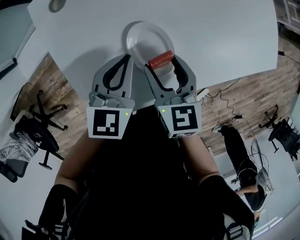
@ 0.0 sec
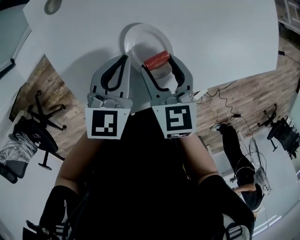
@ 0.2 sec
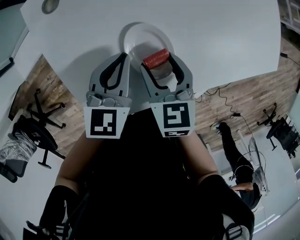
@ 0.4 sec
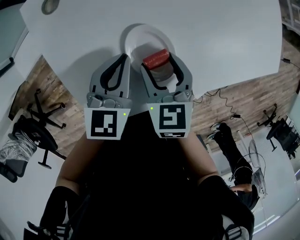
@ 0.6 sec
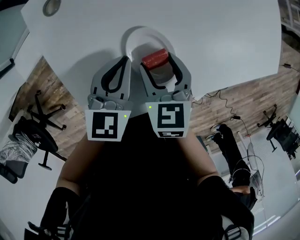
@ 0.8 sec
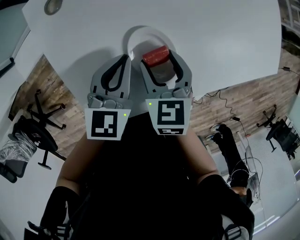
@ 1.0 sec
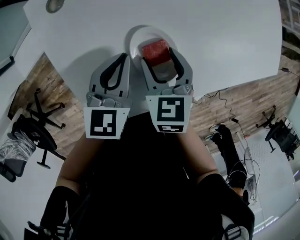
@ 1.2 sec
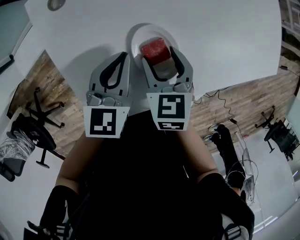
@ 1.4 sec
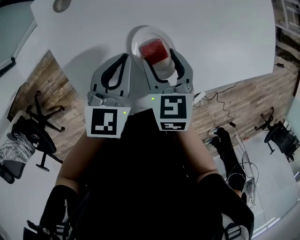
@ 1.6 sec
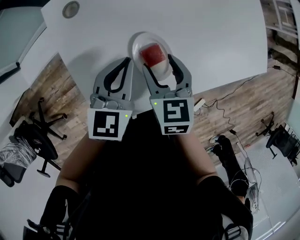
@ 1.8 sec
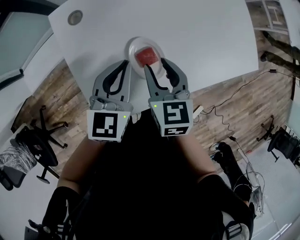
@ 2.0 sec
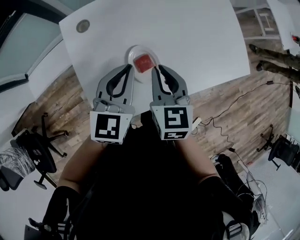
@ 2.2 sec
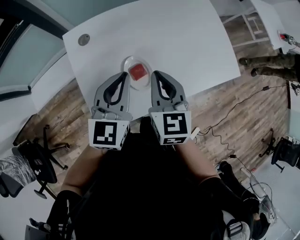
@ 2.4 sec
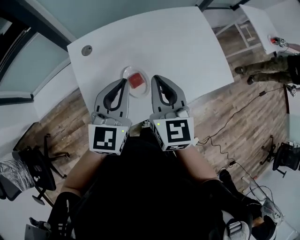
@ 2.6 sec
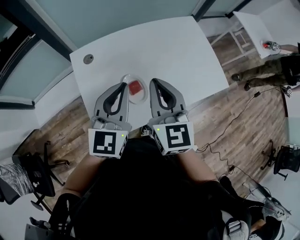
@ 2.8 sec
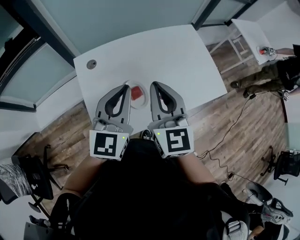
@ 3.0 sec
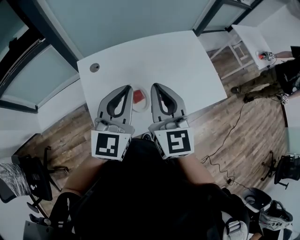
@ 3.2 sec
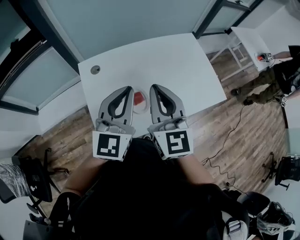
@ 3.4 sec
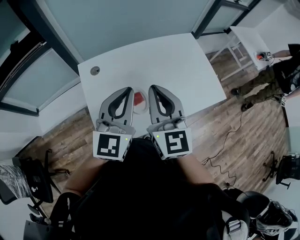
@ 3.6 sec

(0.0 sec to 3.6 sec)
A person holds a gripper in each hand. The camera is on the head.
0.0 sec - 1.8 sec: There are only small adjustments of the grippers.
1.8 sec - 3.6 sec: Both grippers travel together upward, about 25 cm. The right gripper points its fingers approximately 40 degrees further upward, and closes up. The left gripper turns by roughly 30 degrees.

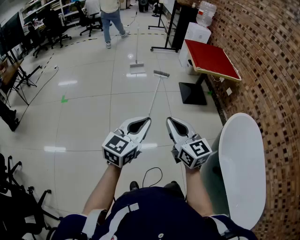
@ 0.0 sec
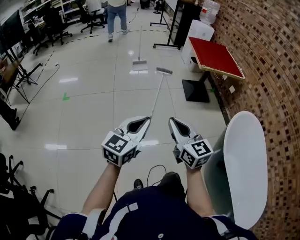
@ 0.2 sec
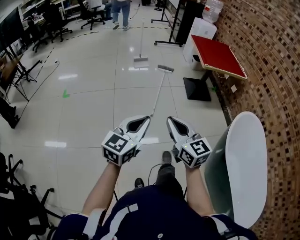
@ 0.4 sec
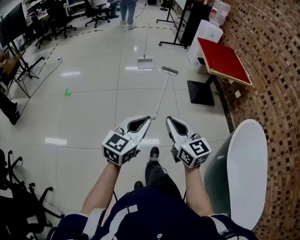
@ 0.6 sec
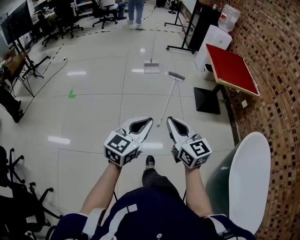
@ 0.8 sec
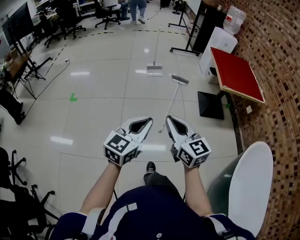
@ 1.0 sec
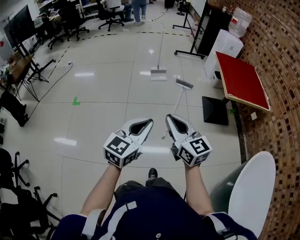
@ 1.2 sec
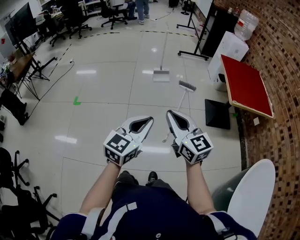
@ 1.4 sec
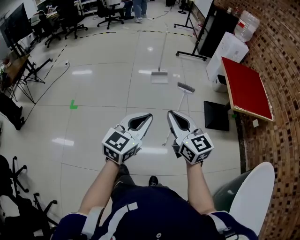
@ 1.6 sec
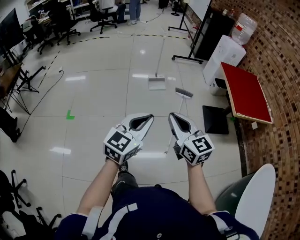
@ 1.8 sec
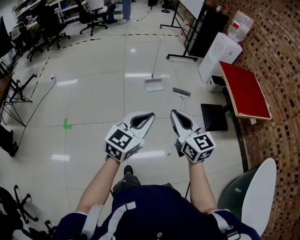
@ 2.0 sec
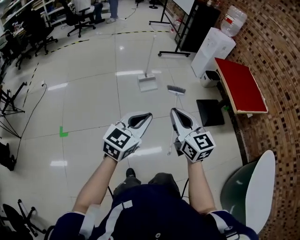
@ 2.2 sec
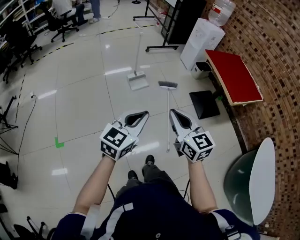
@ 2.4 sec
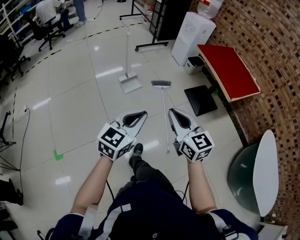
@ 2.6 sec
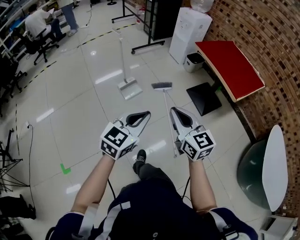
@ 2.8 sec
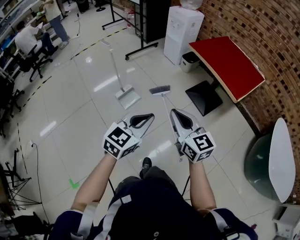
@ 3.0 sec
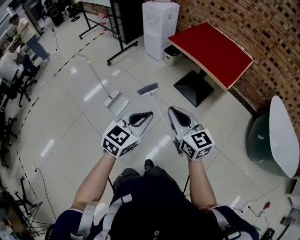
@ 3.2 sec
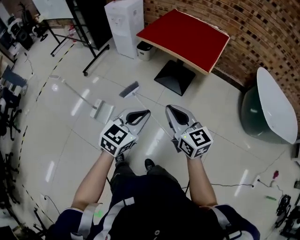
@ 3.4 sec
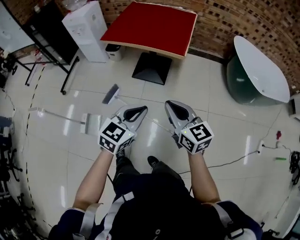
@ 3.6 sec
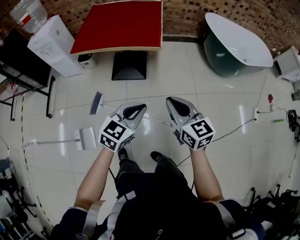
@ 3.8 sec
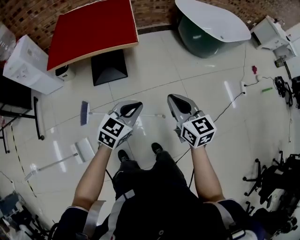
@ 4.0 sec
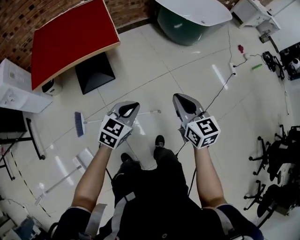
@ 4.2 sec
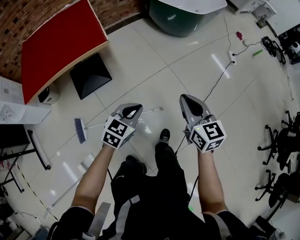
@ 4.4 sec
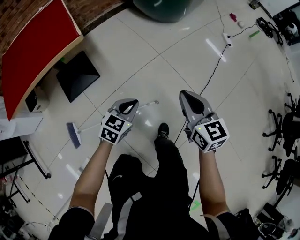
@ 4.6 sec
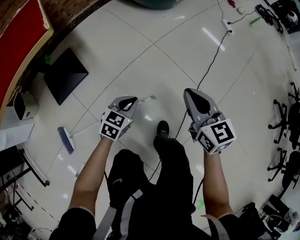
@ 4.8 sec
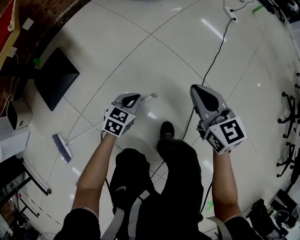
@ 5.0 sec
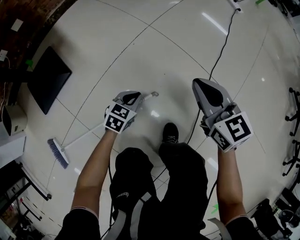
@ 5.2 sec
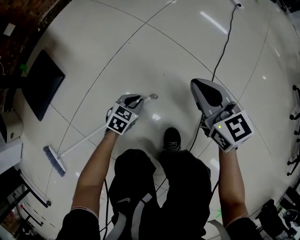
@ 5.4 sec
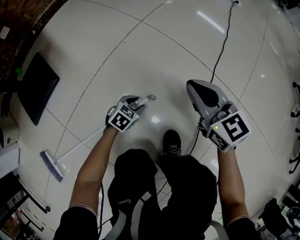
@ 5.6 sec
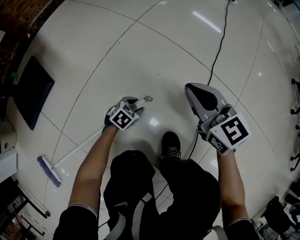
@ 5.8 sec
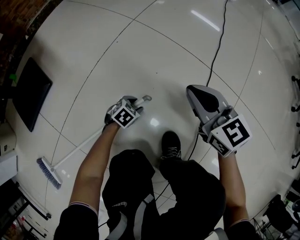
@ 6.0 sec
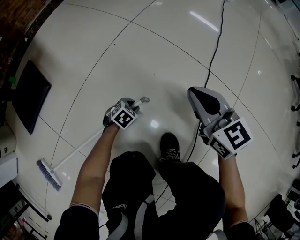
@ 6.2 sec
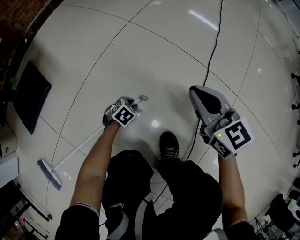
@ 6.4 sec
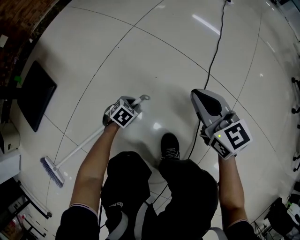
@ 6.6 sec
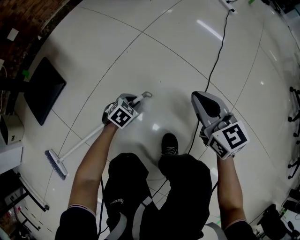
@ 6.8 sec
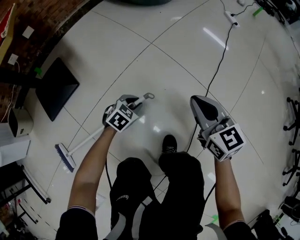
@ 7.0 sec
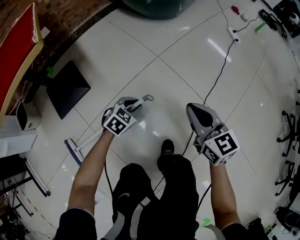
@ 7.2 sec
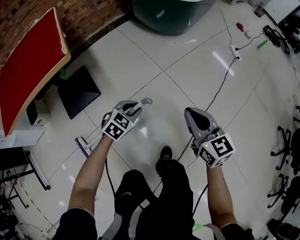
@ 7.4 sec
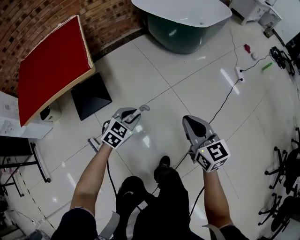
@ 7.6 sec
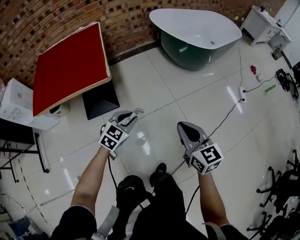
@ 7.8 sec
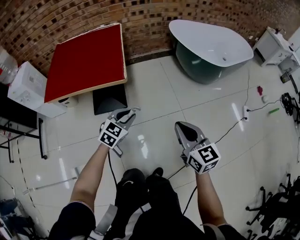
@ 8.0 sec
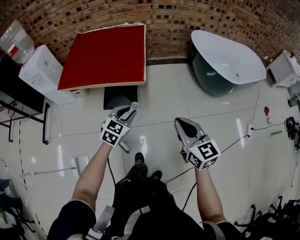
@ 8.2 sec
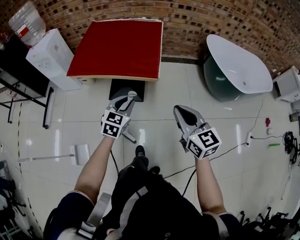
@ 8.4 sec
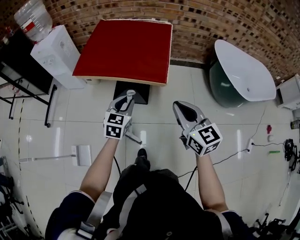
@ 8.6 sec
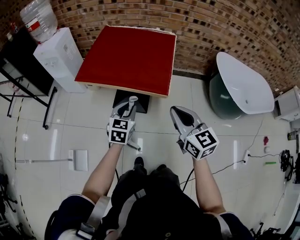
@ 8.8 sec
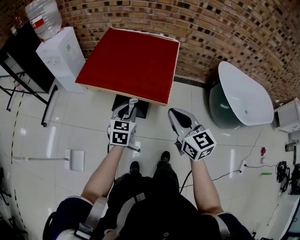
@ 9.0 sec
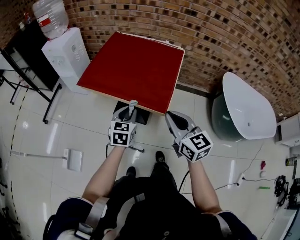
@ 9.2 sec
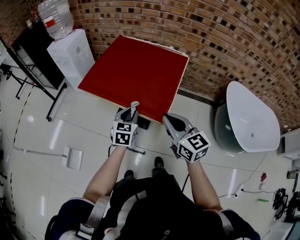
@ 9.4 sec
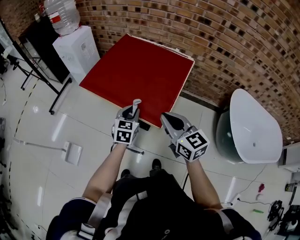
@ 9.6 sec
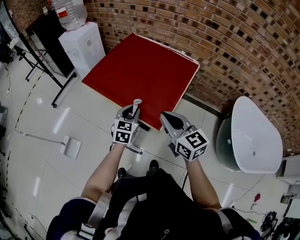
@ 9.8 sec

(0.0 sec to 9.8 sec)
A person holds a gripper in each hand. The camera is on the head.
0.0 sec - 1.4 sec: The grippers both shift forward by about 30 cm.
1.4 sec - 2.8 sec: The left gripper shifts by some 40 cm, and turns by roughly 40 degrees, while the right gripper ends up approximately 35 cm from where it was, and swivels about 40 degrees.
2.8 sec - 4.2 sec: The left gripper shifts by about 35 cm, and changes its angle by about 90 degrees; the right gripper changes place by approximately 25 cm, and changes its angle by about 90 degrees.
4.2 sec - 5.6 sec: The grippers both shift downward by roughly 60 cm. The left gripper changes its angle by some 40 degrees, and opens its fingers.
5.6 sec - 7.0 sec: The grippers both shift upward by about 15 cm.
7.0 sec - 8.4 sec: The two grippers go some 50 cm upward. The left gripper rotates approximately 70 degrees. Meanwhile the right gripper turns by about 50 degrees.
8.4 sec - 9.8 sec: The left gripper ends up about 20 cm from where it was, and rotates approximately 30 degrees. The right gripper shifts by about 25 cm, and rotates approximately 30 degrees.

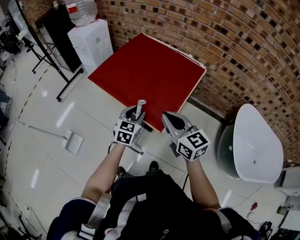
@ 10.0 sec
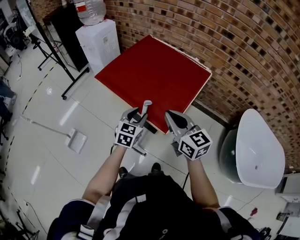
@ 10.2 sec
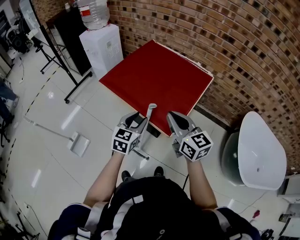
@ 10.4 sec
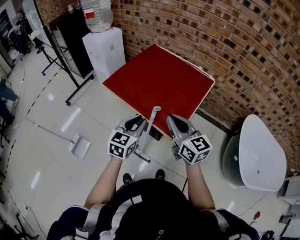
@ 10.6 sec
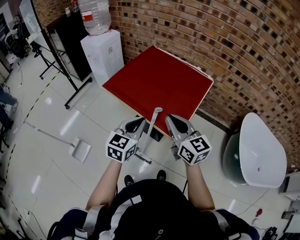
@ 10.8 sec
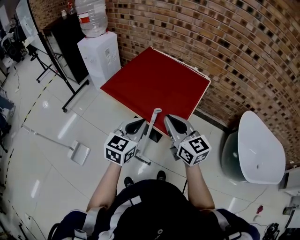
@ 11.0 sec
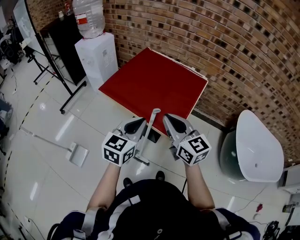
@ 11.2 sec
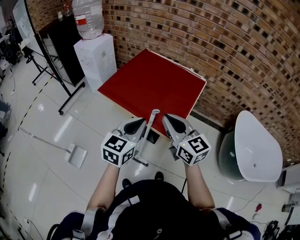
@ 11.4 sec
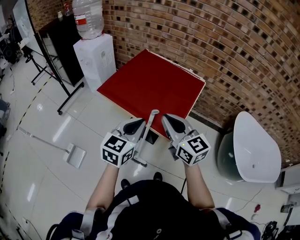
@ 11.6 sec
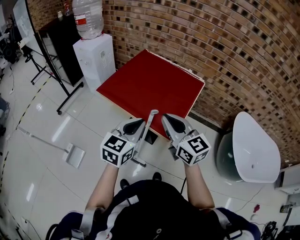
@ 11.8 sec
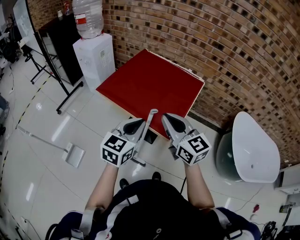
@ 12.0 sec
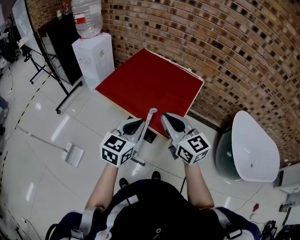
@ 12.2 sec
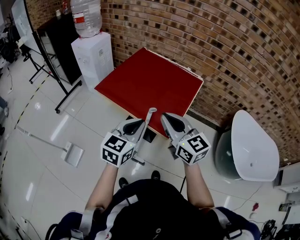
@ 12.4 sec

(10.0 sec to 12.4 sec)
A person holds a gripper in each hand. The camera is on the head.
10.0 sec - 11.2 sec: The right gripper travels to the left and upward by approximately 10 cm. Meanwhile the left gripper moves upward and backward, about 15 cm, and closes.
11.2 sec - 12.4 sec: There are only small adjustments of the grippers.

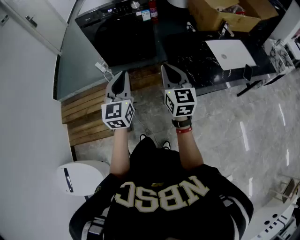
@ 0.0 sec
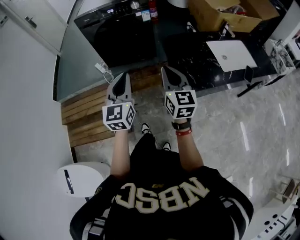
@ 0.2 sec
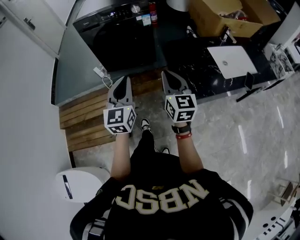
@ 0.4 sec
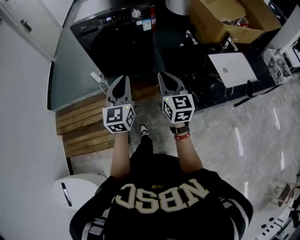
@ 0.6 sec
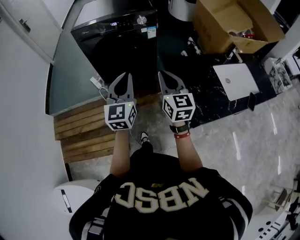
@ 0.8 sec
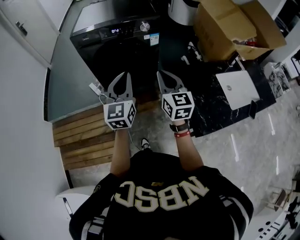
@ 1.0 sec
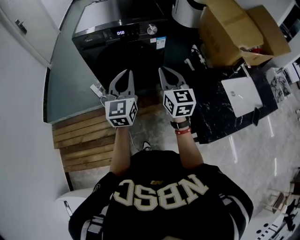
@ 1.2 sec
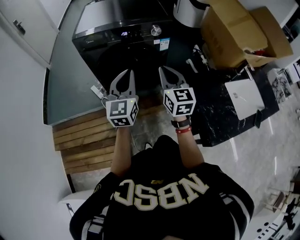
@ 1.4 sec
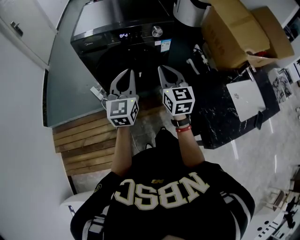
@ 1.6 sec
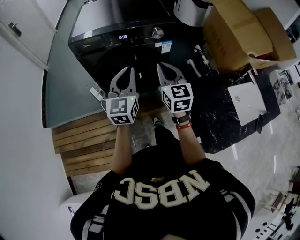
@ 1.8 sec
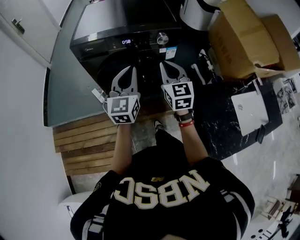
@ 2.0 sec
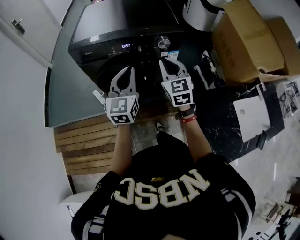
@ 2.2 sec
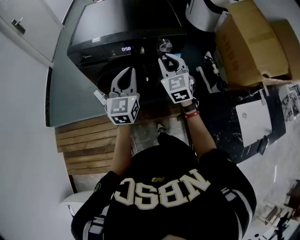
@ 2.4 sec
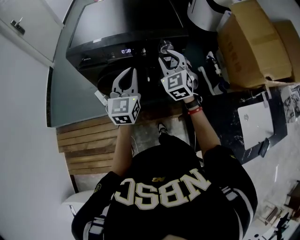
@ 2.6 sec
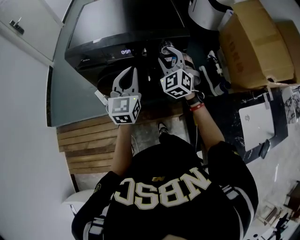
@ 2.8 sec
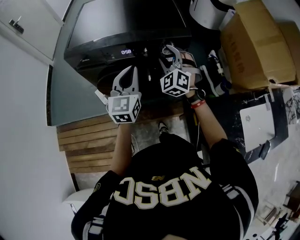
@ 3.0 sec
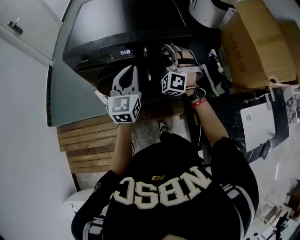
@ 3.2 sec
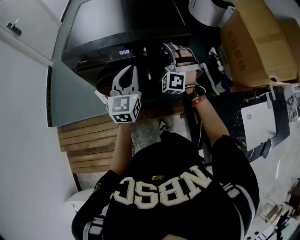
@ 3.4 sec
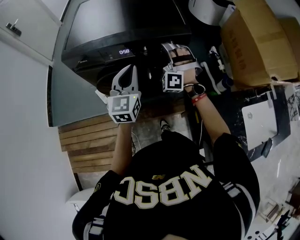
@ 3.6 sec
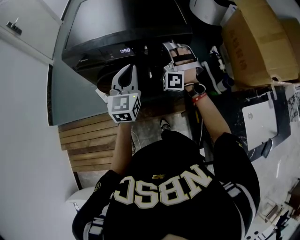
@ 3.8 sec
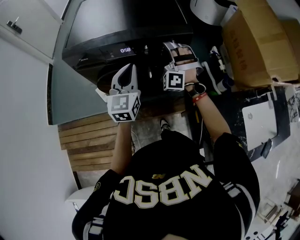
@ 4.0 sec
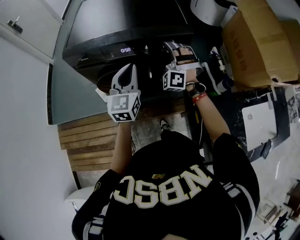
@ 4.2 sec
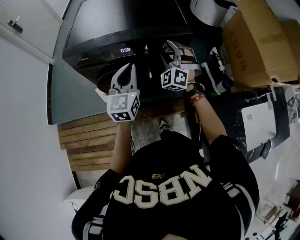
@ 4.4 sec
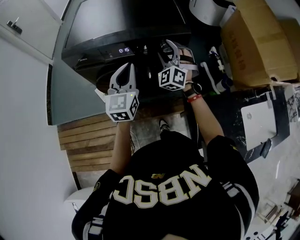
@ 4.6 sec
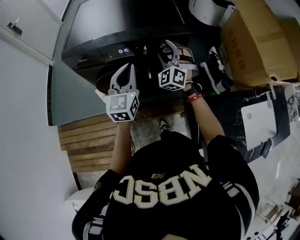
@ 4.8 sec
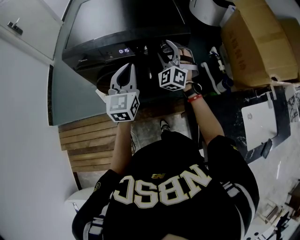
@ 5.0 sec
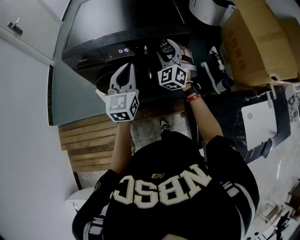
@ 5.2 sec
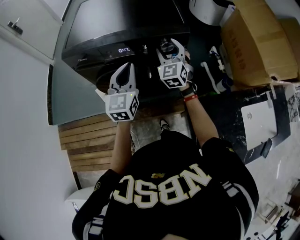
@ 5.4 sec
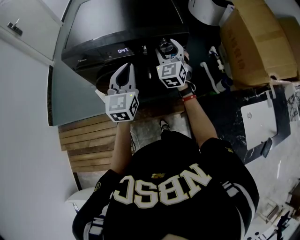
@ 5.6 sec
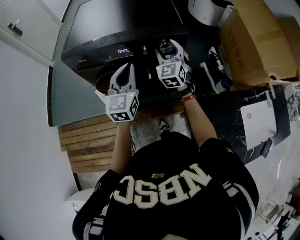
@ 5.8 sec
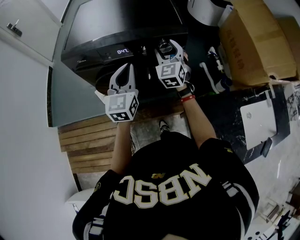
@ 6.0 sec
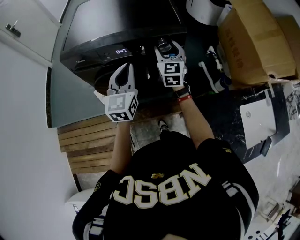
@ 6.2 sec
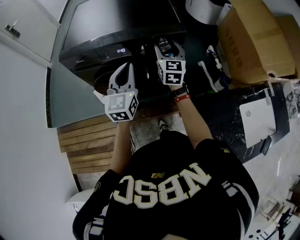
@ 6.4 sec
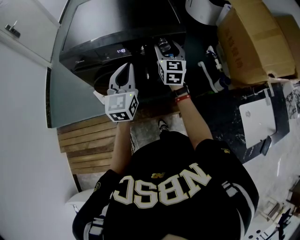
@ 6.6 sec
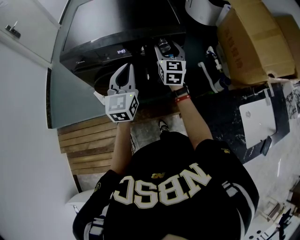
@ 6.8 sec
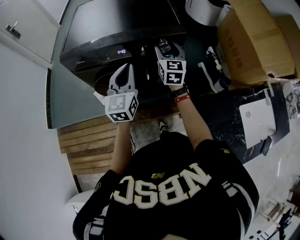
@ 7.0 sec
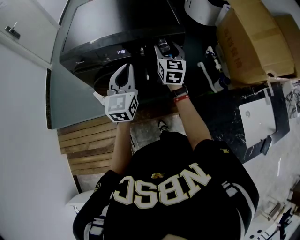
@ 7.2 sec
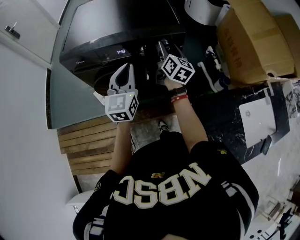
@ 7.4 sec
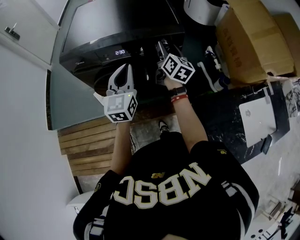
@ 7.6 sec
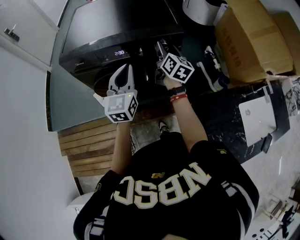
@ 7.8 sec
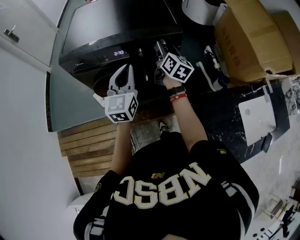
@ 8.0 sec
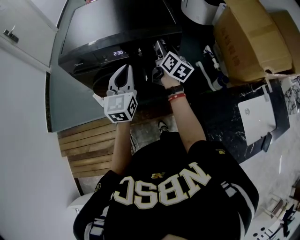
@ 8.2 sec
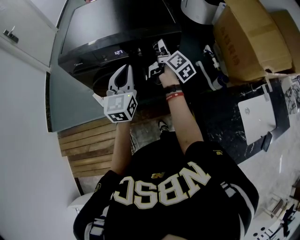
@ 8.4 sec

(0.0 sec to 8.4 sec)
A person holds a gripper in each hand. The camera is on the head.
0.0 sec - 1.4 sec: The two grippers go about 35 cm forward.
1.4 sec - 2.8 sec: Both grippers move forward, some 25 cm. The right gripper rotates around the line of its fingers by about 50 degrees, counterclockwise from behind, and opens up.
2.8 sec - 4.2 sec: The right gripper ends up about 5 cm from where it was, and turns by roughly 40 degrees.
4.2 sec - 5.6 sec: The right gripper rotates around the line of its fingers by about 60 degrees, clockwise from behind.
5.6 sec - 7.0 sec: The right gripper turns by roughly 30 degrees.
7.0 sec - 8.4 sec: The right gripper twists approximately 60 degrees clockwise, seen from behind.
